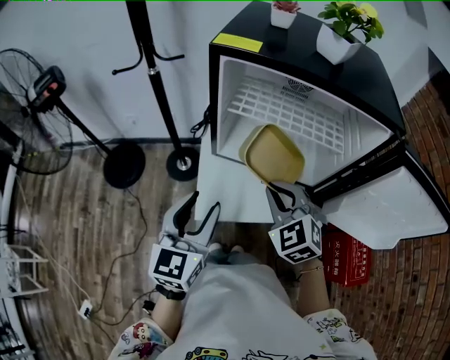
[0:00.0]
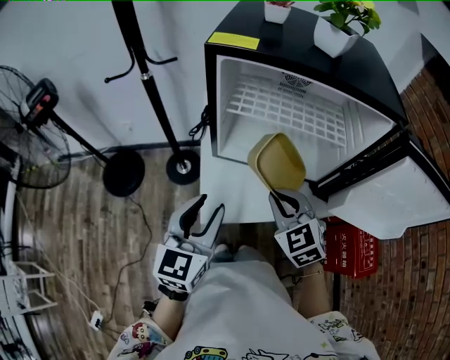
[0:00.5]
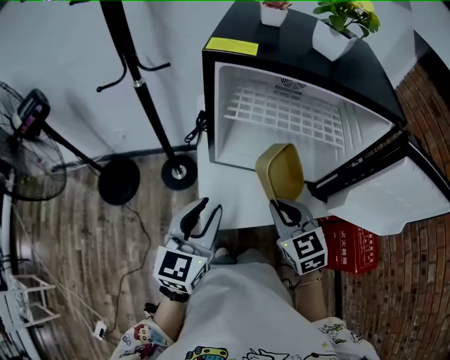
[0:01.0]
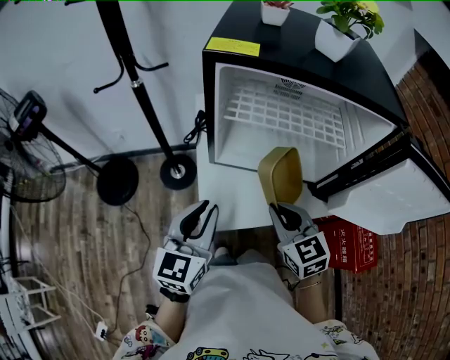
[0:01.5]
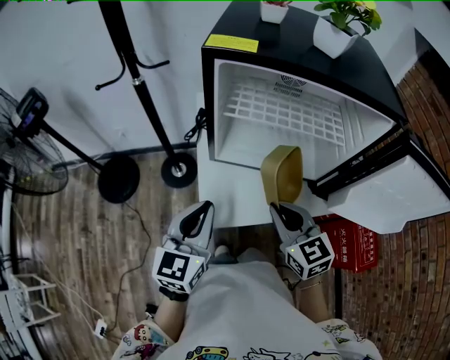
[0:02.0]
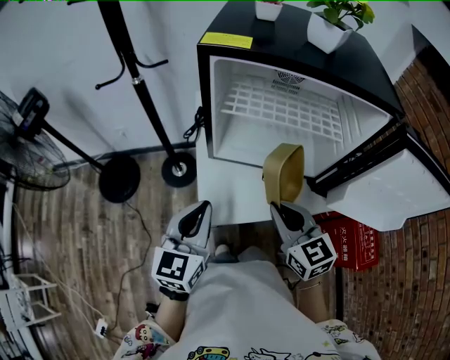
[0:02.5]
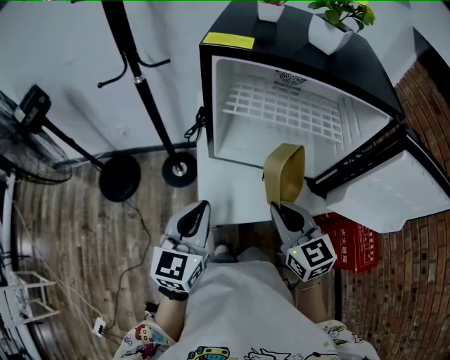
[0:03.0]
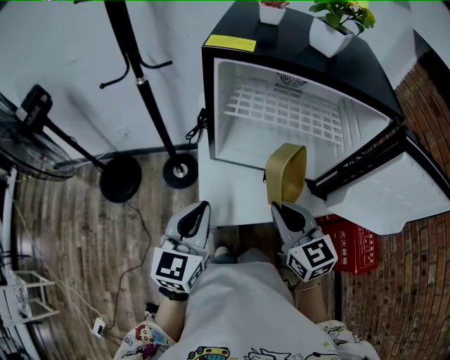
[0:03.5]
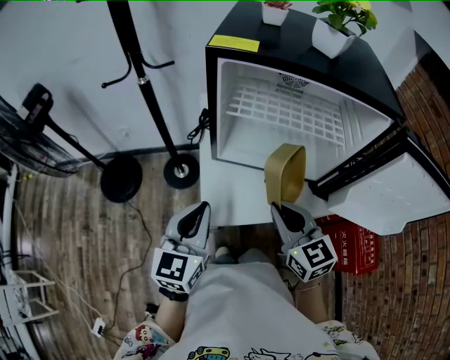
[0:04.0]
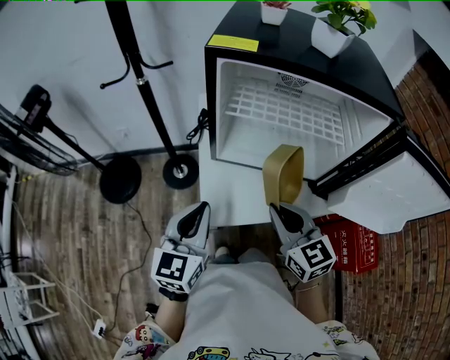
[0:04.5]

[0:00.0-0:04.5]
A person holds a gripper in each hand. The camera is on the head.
0:00.0 to 0:02.0: The right gripper rotates some 40 degrees; the left gripper closes its fingers.
0:02.0 to 0:04.5: The grippers make only small movements.

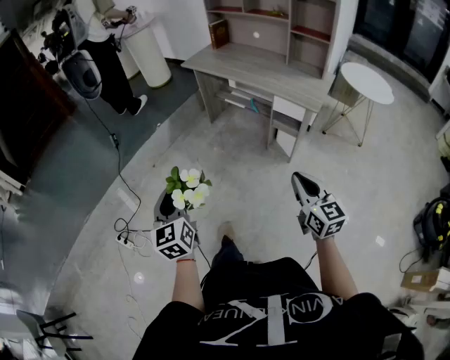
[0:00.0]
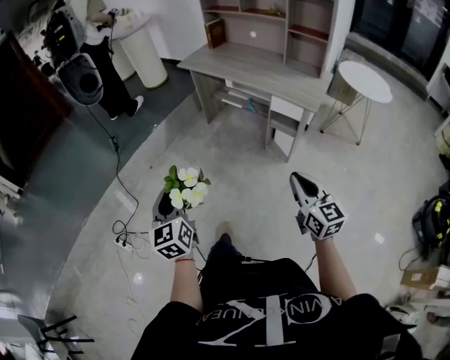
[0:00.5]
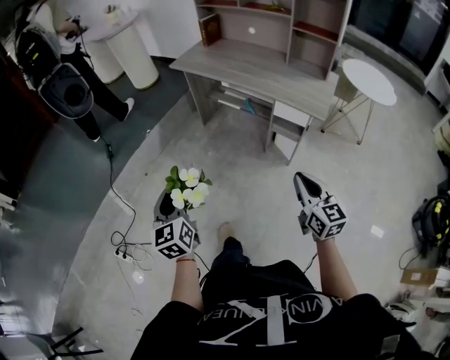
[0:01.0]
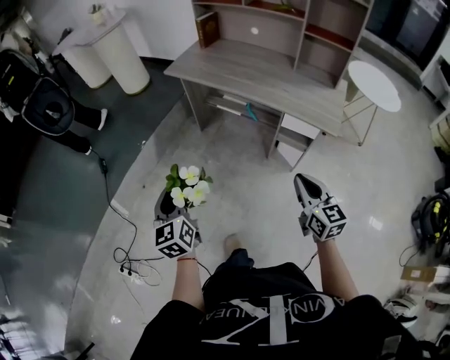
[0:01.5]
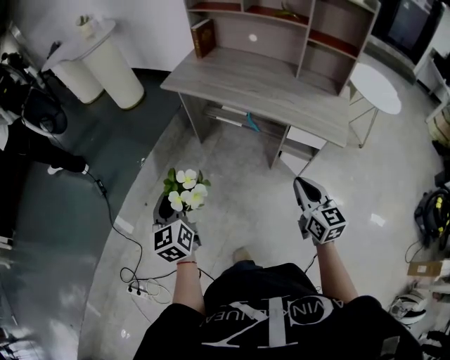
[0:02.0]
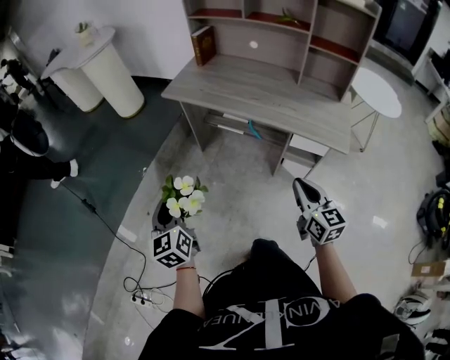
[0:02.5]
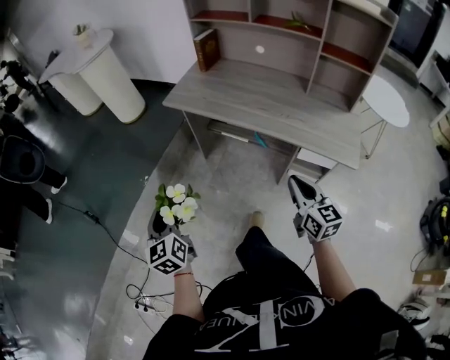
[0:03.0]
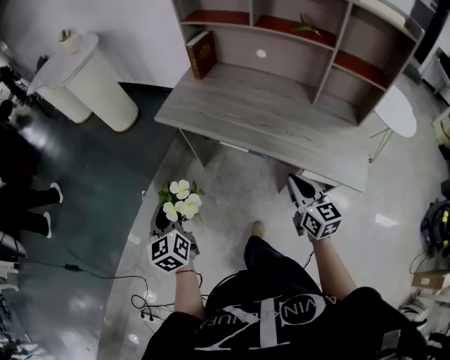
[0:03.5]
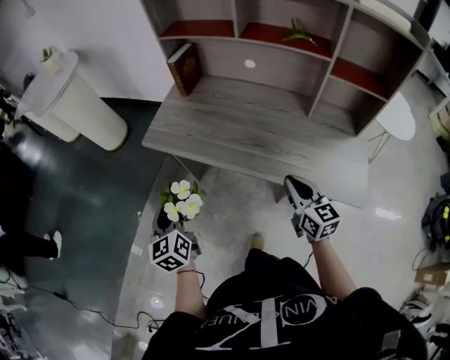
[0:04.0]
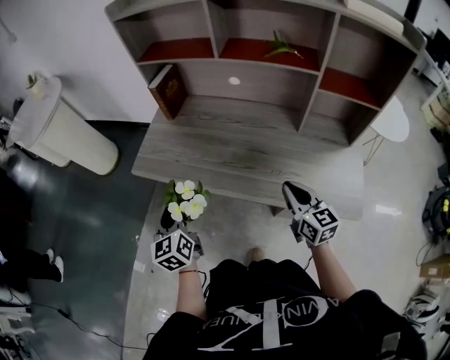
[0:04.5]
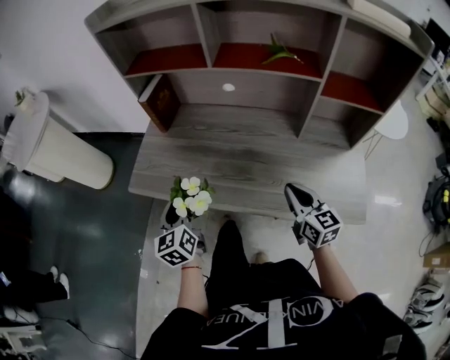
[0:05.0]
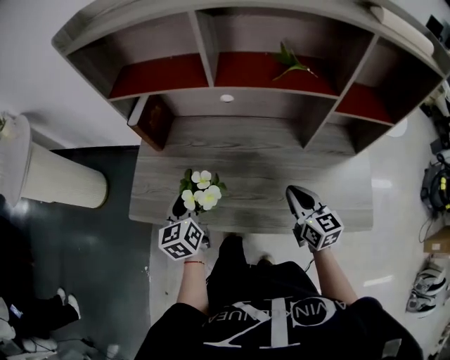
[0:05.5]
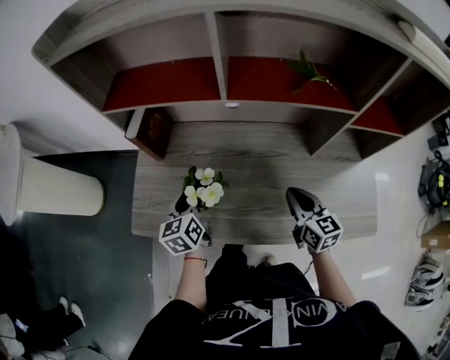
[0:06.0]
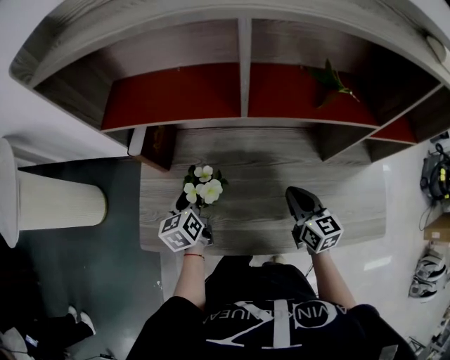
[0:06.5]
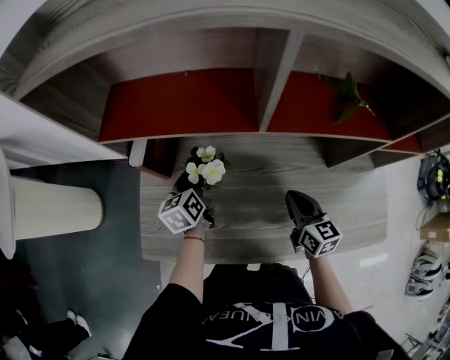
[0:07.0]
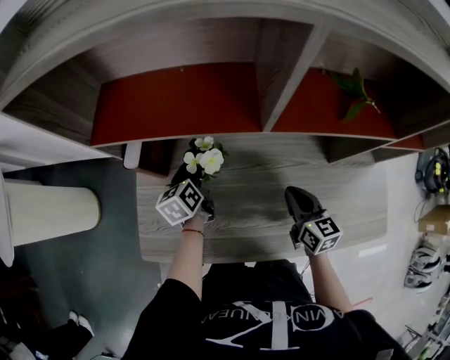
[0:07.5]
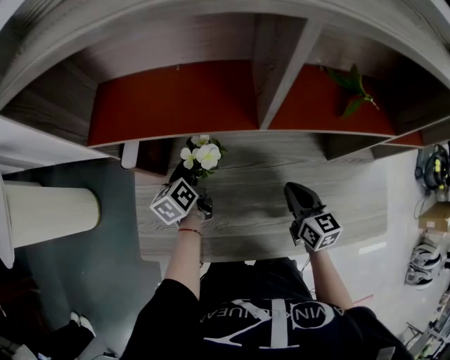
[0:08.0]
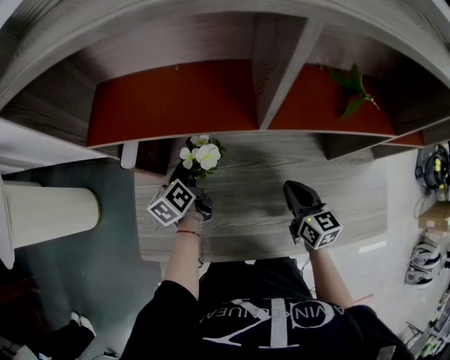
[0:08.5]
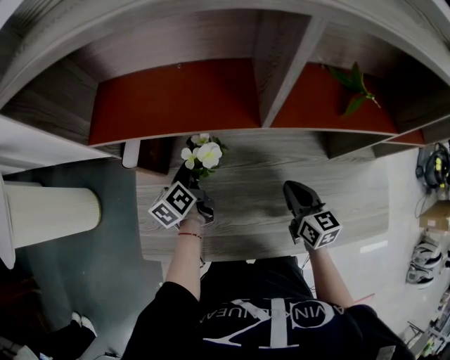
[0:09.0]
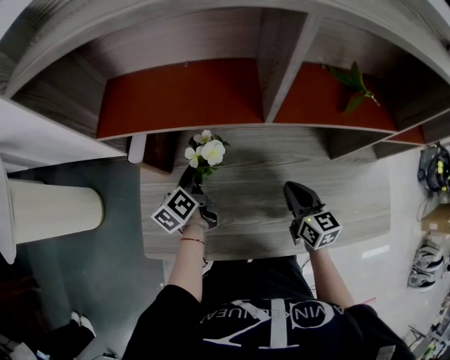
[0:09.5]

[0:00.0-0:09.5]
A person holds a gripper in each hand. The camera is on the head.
0:00.0 to 0:02.0: The grippers both shift forward by about 35 cm.
0:02.0 to 0:04.0: The two grippers go some 35 cm forward.
0:04.0 to 0:05.5: The right gripper goes approximately 15 cm forward, while the left gripper moves forward and to the right, about 30 cm, and swivels roughly 20 degrees.
0:05.5 to 0:07.5: The right gripper travels forward and to the left by about 15 cm. Meanwhile the left gripper moves forward, approximately 25 cm.
0:07.5 to 0:09.5: The grippers stay close to where they were, moving slightly.

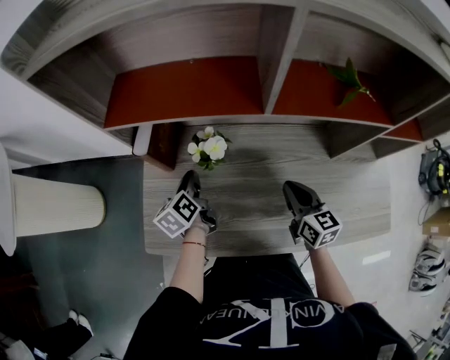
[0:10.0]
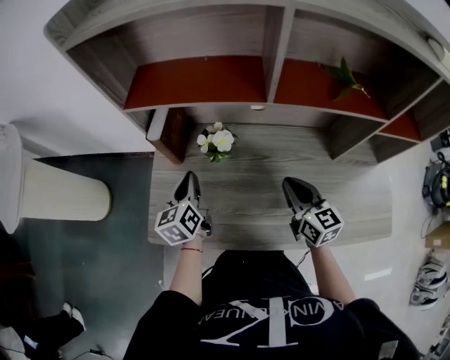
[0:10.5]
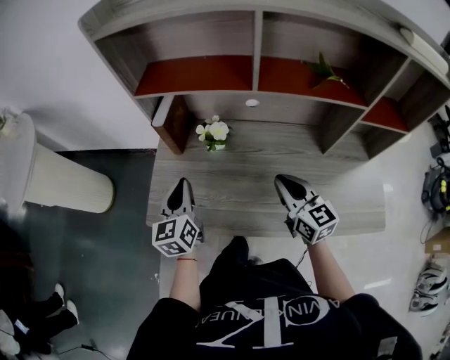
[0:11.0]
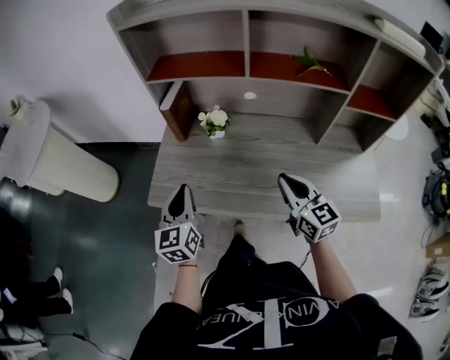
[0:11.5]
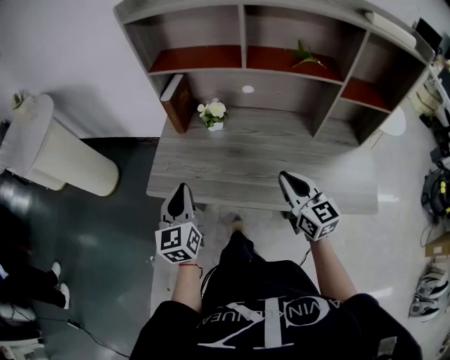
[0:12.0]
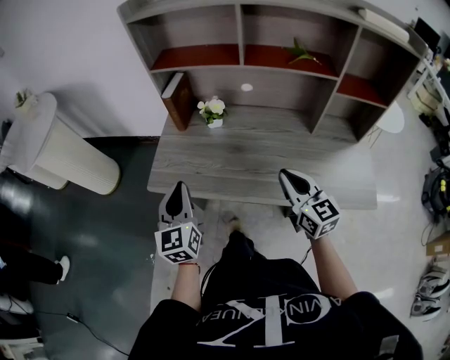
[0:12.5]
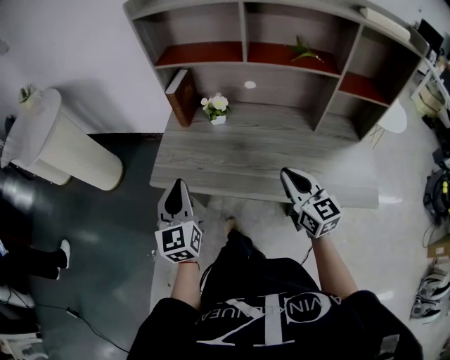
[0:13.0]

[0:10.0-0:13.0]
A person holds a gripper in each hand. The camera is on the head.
0:10.0 to 0:11.5: The left gripper goes some 25 cm backward and upward, and rotates roughly 40 degrees. The right gripper shifts approximately 15 cm backward and upward, and changes its angle by some 20 degrees.
0:11.5 to 0:13.0: The grippers both shift backward by roughly 5 cm.

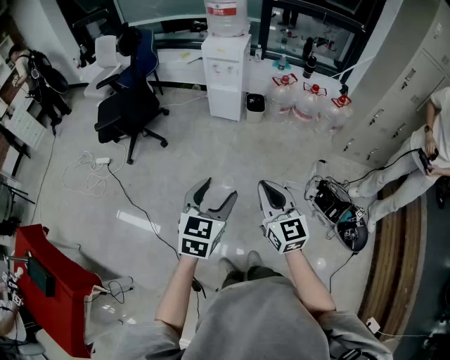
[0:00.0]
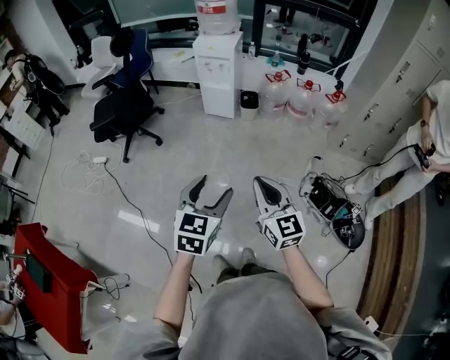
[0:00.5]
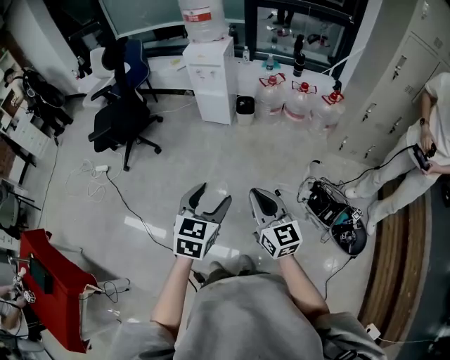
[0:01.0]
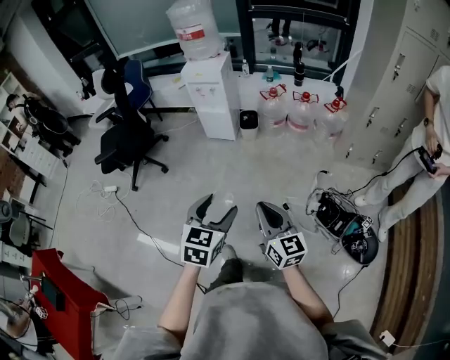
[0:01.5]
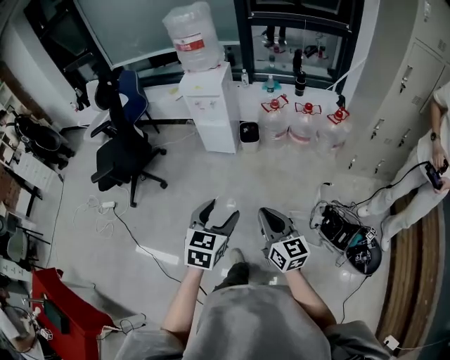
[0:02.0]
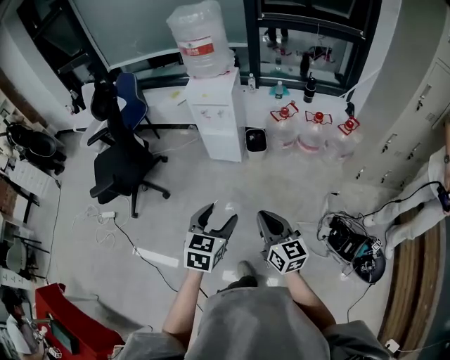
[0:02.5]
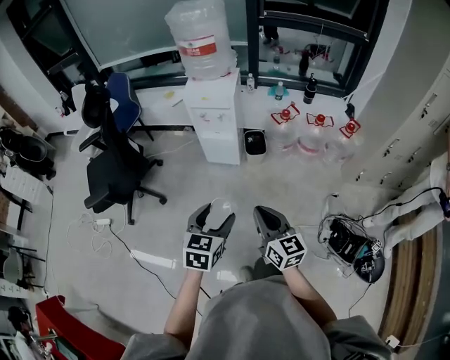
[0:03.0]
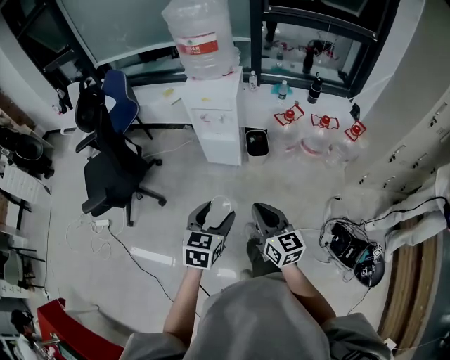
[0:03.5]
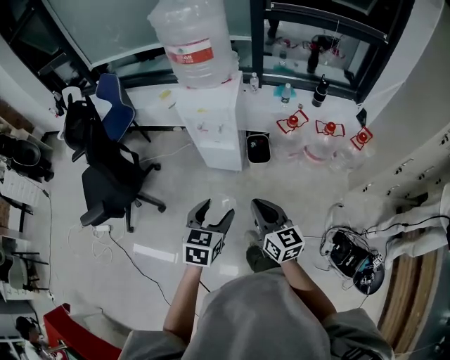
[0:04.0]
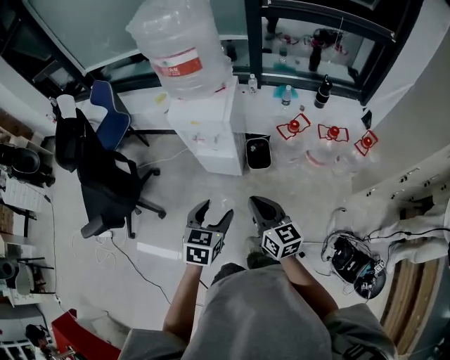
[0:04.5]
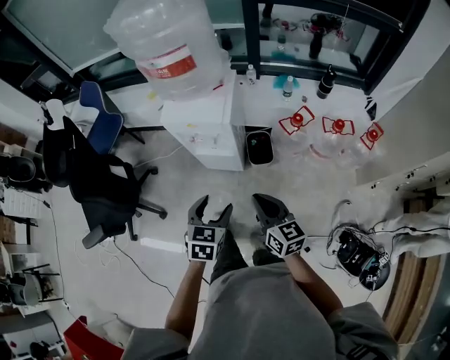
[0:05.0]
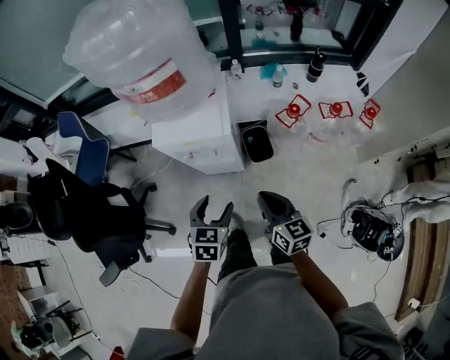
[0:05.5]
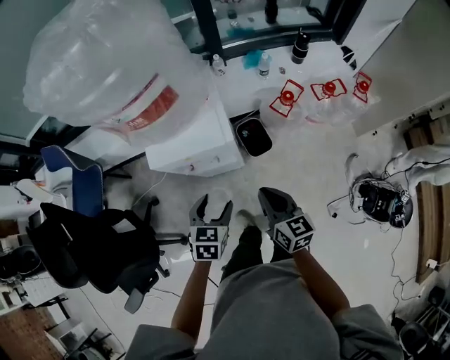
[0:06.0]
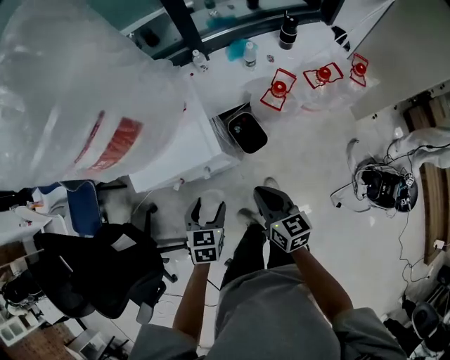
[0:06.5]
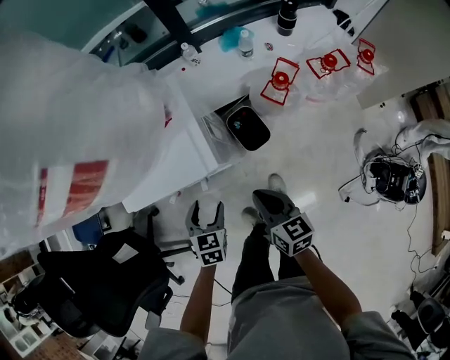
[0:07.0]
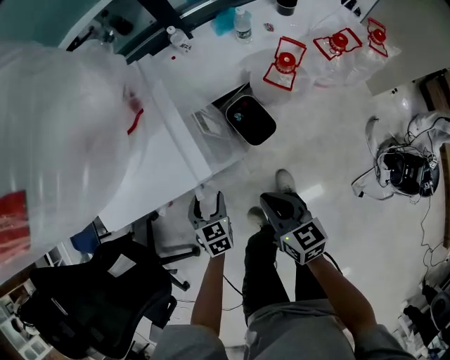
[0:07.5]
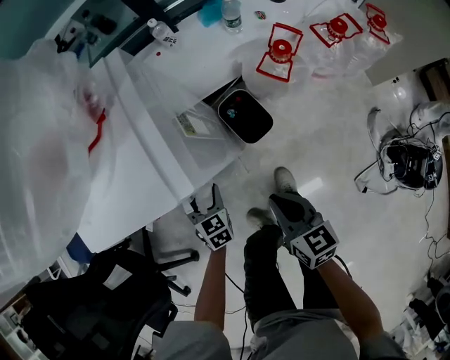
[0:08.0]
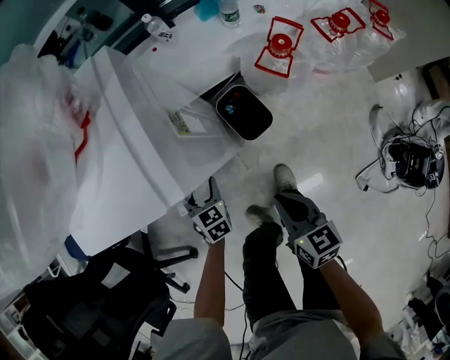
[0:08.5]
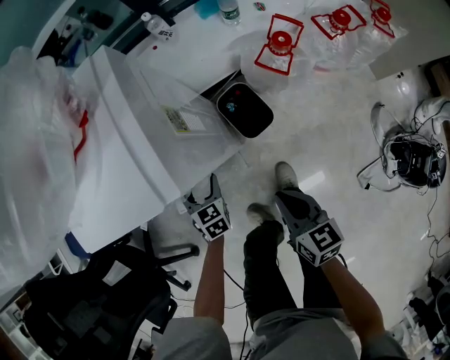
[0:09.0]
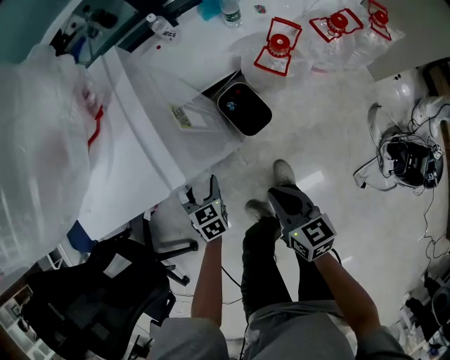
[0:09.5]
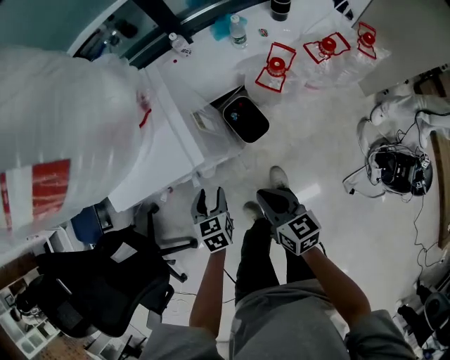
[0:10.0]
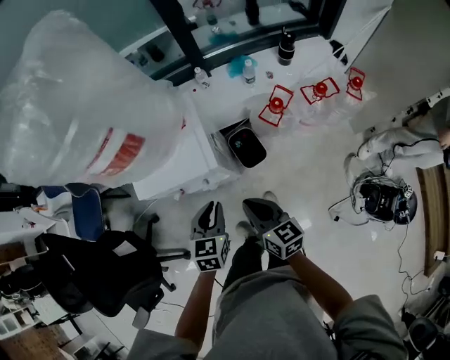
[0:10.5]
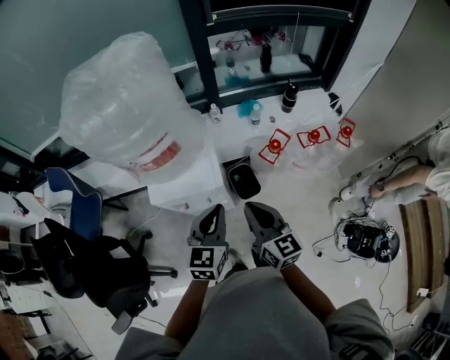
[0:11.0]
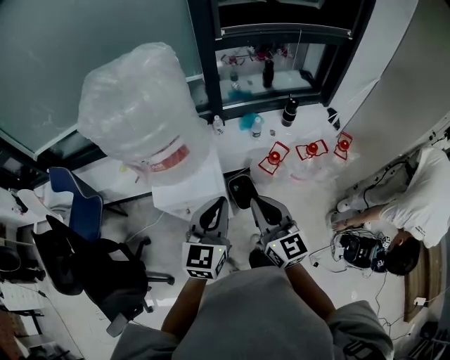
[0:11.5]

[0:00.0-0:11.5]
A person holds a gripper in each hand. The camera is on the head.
0:00.0 to 0:02.0: Both grippers move forward and to the right, approximately 20 cm.
0:02.0 to 0:04.0: The two grippers go about 40 cm forward.
0:04.0 to 0:06.0: The left gripper heads forward and downward, covering roughly 35 cm, and swivels about 20 degrees, while the right gripper goes about 30 cm forward, and turns by about 30 degrees.
0:06.0 to 0:07.5: Both grippers travel together downward, roughly 25 cm.
0:07.5 to 0:09.5: The right gripper moves roughly 5 cm. Meanwhile the left gripper moves downward, some 5 cm.
0:09.5 to 0:11.5: The two grippers go some 50 cm upward. The left gripper points its fingers some 40 degrees further upward, and closes up, while the right gripper rotates approximately 40 degrees.
